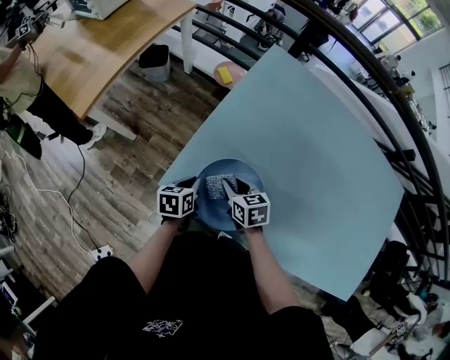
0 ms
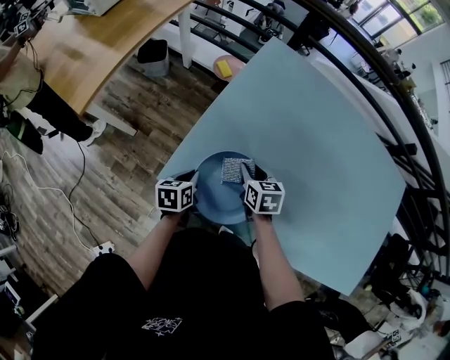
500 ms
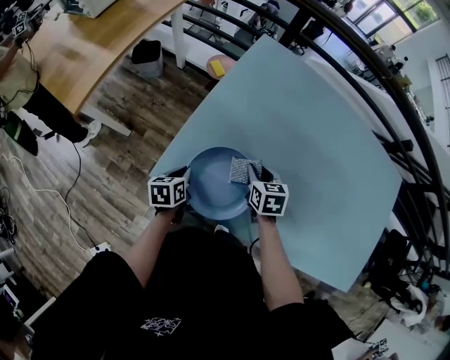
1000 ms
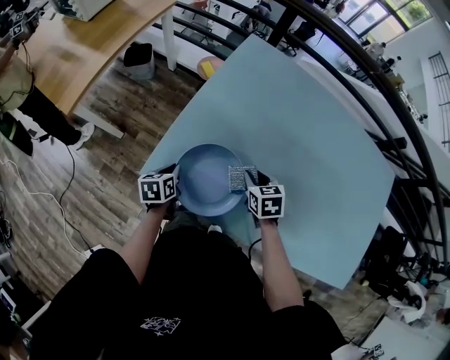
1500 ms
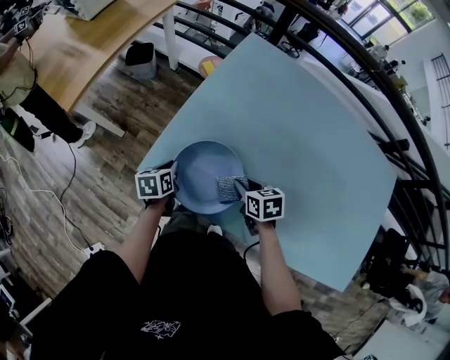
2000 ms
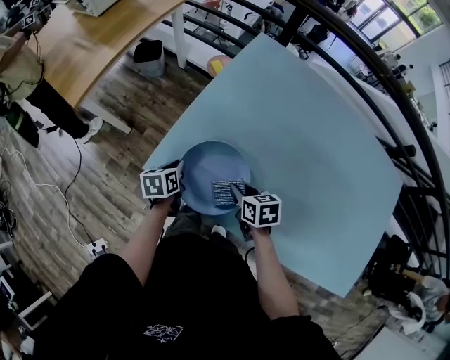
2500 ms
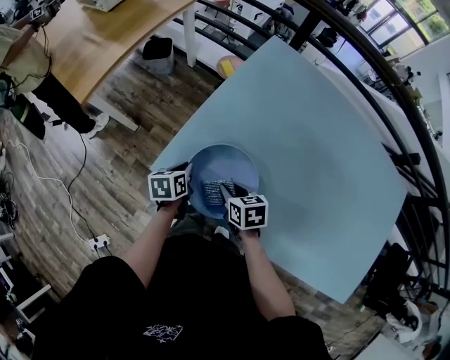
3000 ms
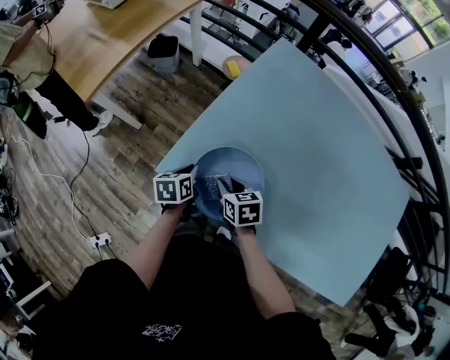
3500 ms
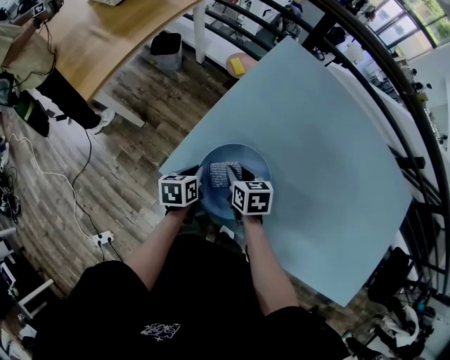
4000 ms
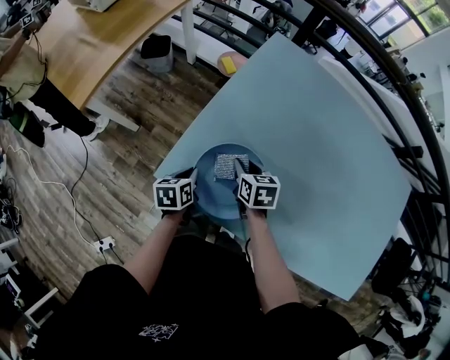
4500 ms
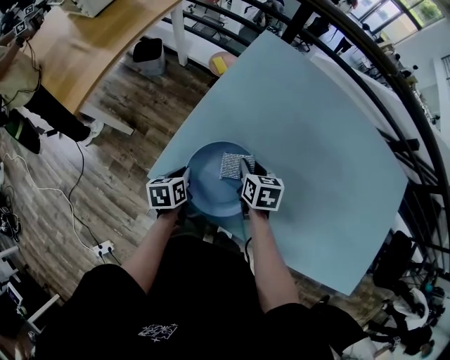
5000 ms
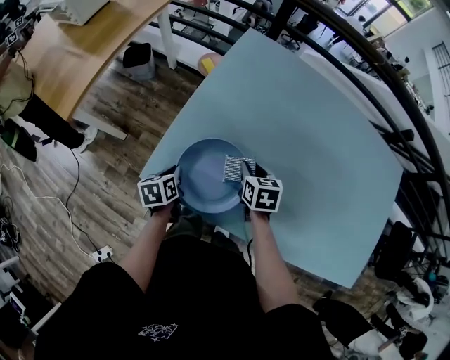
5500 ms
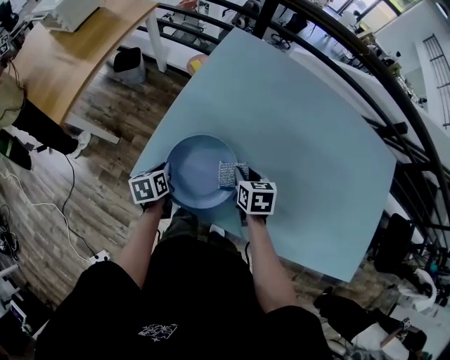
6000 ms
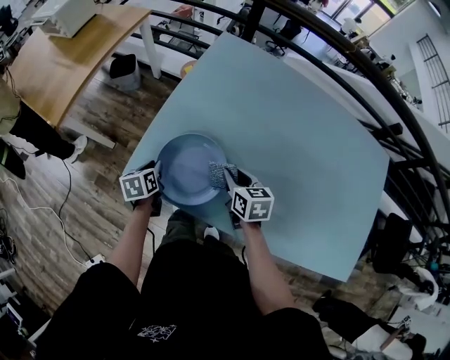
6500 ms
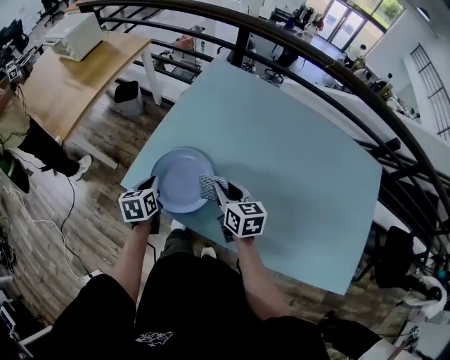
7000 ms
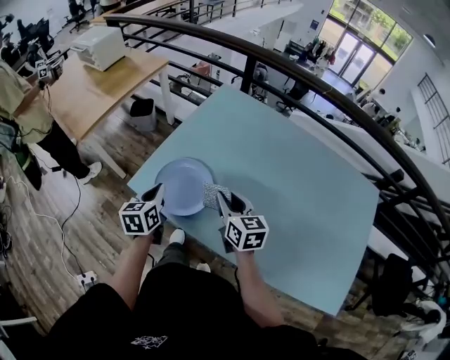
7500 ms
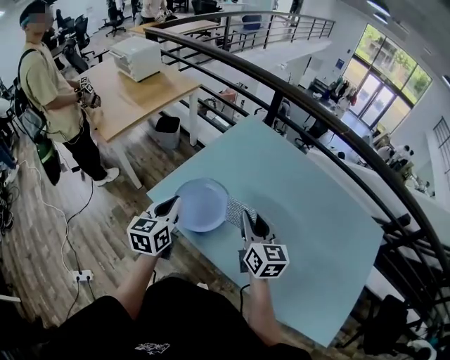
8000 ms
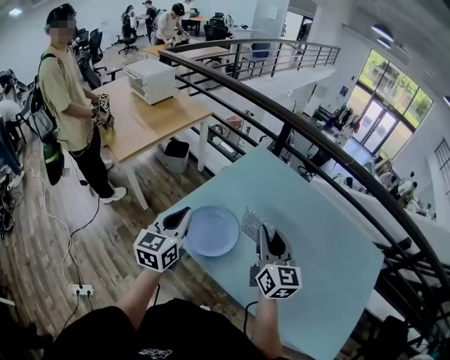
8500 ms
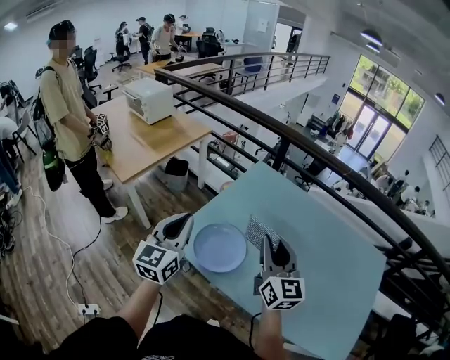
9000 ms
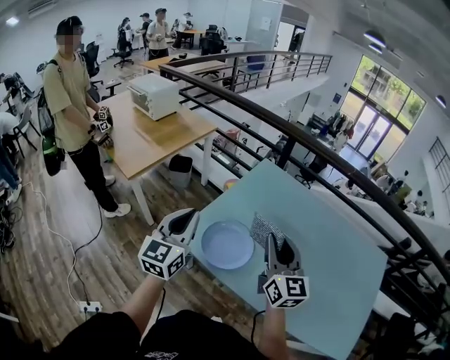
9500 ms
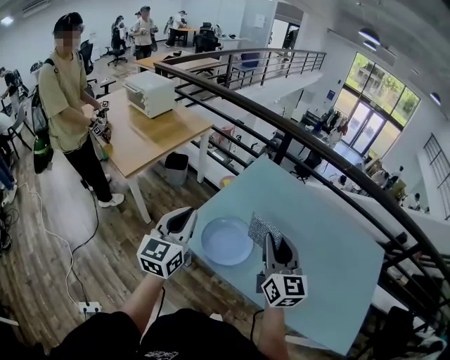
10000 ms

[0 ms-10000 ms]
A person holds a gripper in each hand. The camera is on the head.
0 ms to 2000 ms: The right gripper heads to the right and backward, covering about 15 cm.
2000 ms to 4000 ms: The right gripper is displaced to the left and forward by about 15 cm.
4000 ms to 6000 ms: The right gripper goes about 15 cm to the right.
6000 ms to 8000 ms: Both grippers travel together upward and backward, roughly 30 cm. The left gripper angles its fingers upward, by some 30 degrees. The right gripper points its fingers roughly 40 degrees further upward.
8000 ms to 10000 ms: Both grippers move upward and to the left, approximately 15 cm. The left gripper turns by roughly 20 degrees.

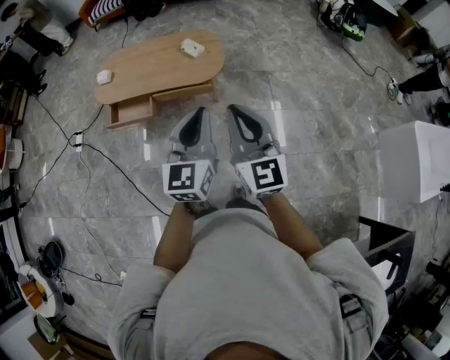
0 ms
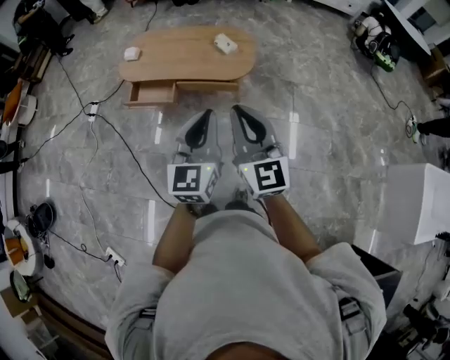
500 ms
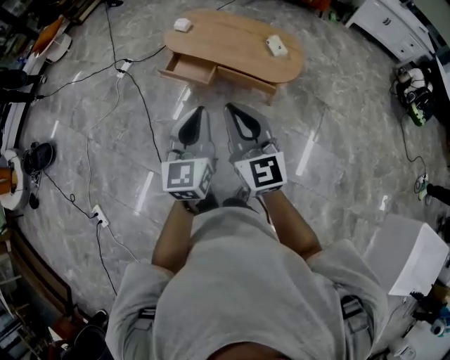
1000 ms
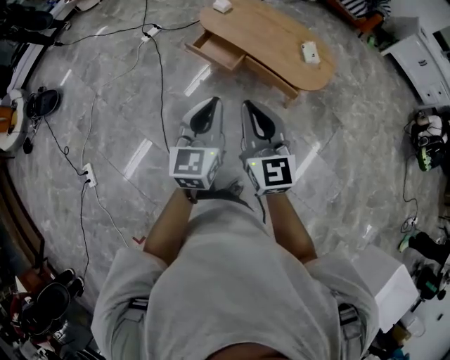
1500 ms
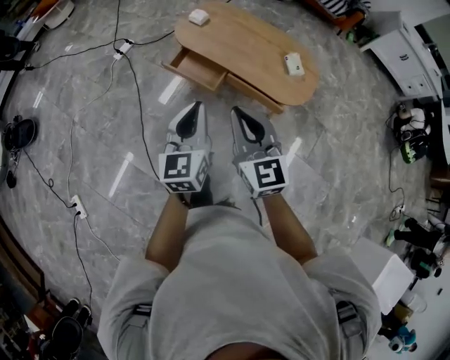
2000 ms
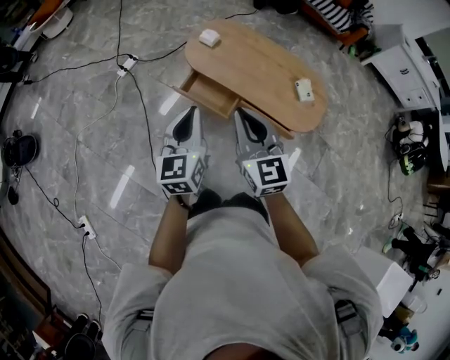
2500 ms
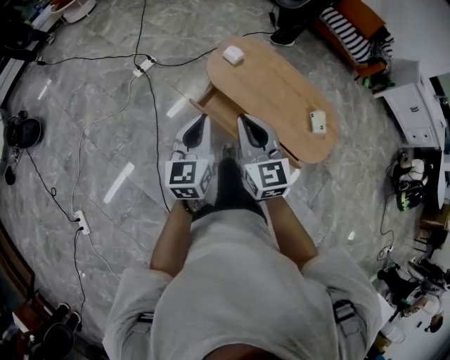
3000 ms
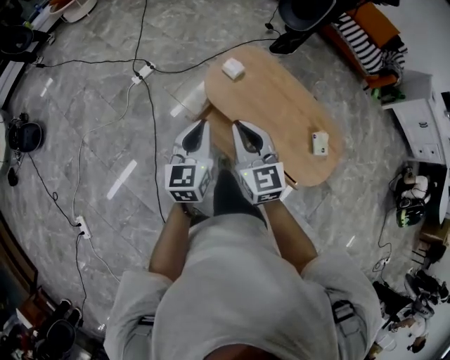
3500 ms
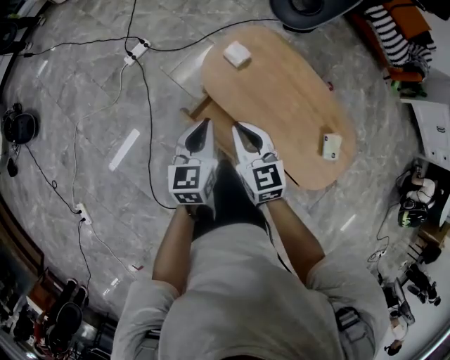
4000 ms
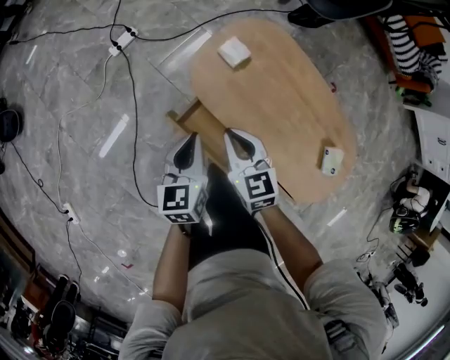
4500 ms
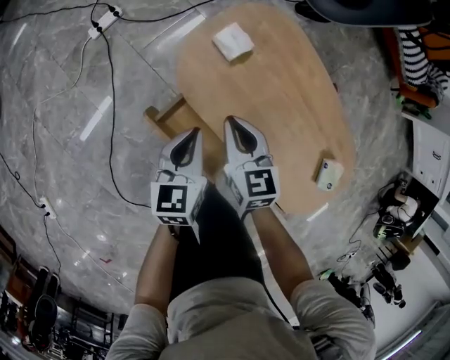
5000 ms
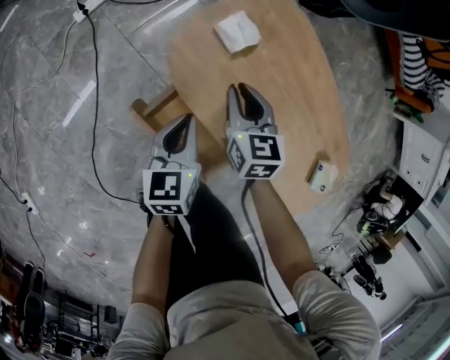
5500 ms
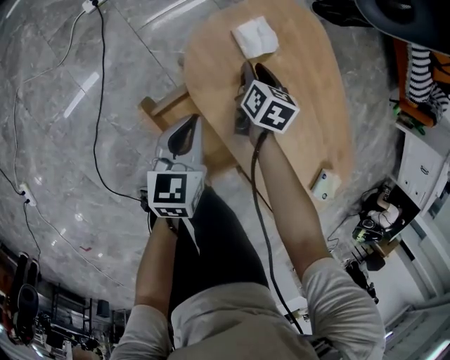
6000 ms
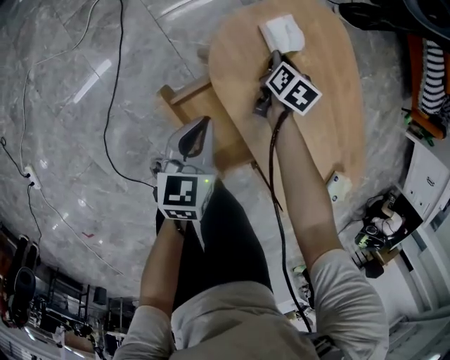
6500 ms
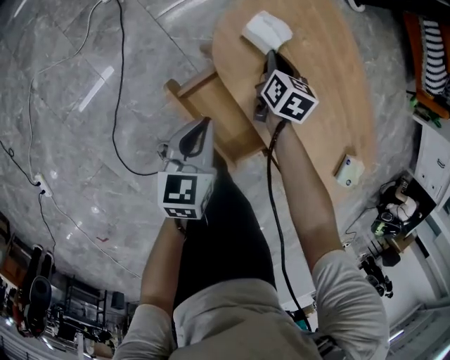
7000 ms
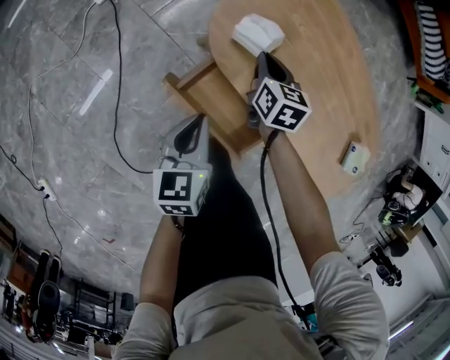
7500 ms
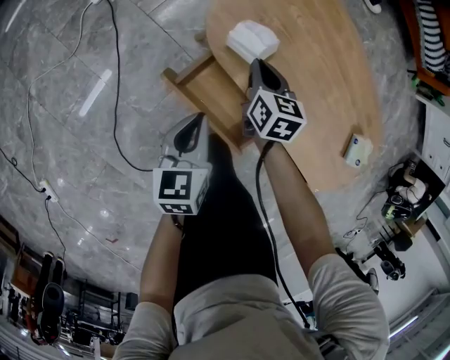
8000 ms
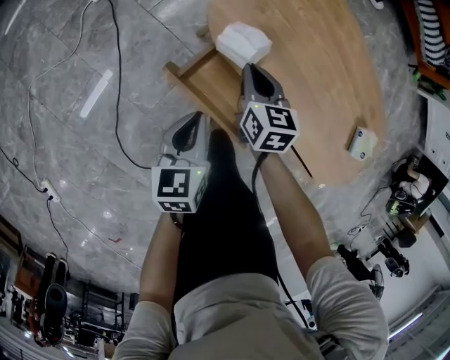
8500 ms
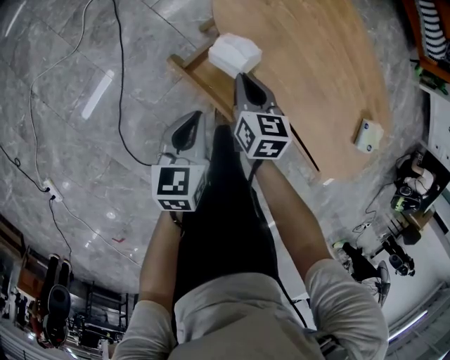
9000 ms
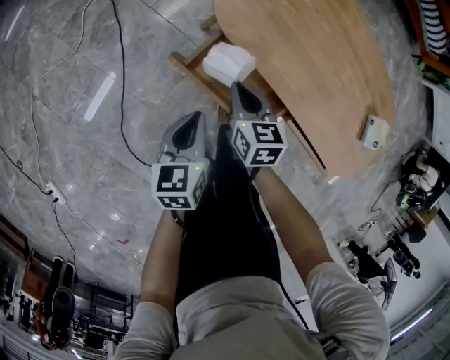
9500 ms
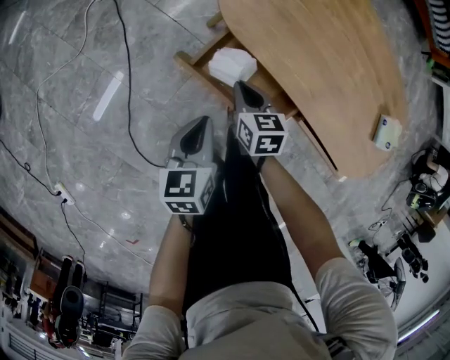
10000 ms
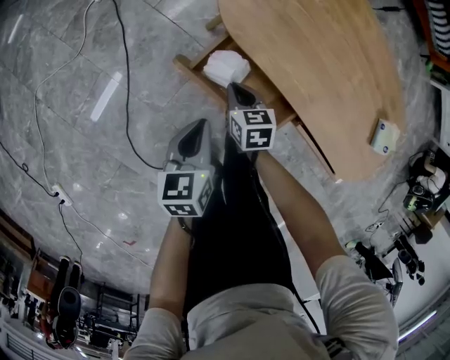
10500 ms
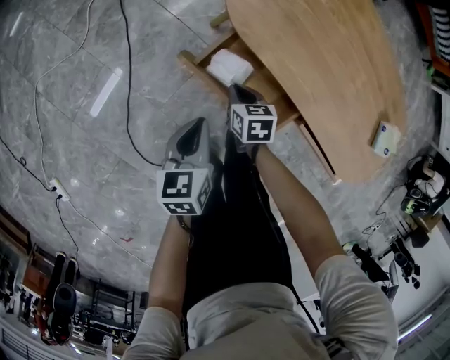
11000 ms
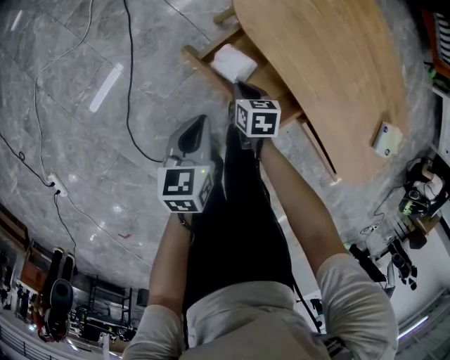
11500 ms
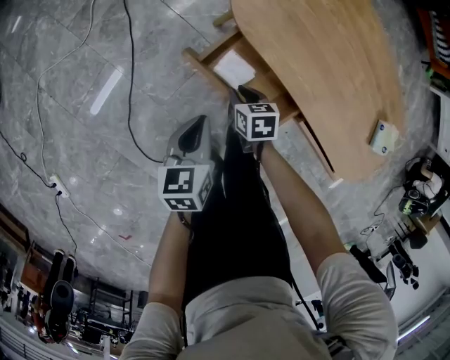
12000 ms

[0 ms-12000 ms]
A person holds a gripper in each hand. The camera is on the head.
0 ms to 2000 ms: The left gripper changes place by roughly 35 cm, and swivels some 40 degrees; the right gripper moves about 30 cm, and swivels some 40 degrees.
2000 ms to 4000 ms: The two grippers travel together, forward, some 50 cm. The right gripper changes its angle by roughly 20 degrees.
4000 ms to 6000 ms: The right gripper is displaced downward and forward by about 40 cm, rotates some 40 degrees, and opens. The left gripper moves downward, approximately 25 cm.
6000 ms to 8000 ms: The two grippers go approximately 10 cm backward. The right gripper closes up.
8000 ms to 10000 ms: The left gripper travels backward and downward by approximately 10 cm. Meanwhile the right gripper heads backward, downward and to the left, covering some 15 cm.
10000 ms to 12000 ms: The right gripper shifts about 5 cm downward, and opens.

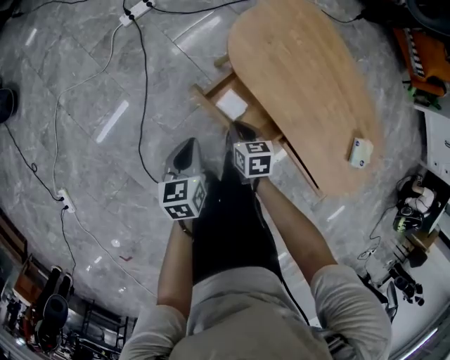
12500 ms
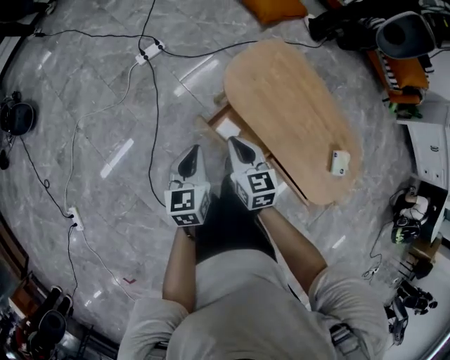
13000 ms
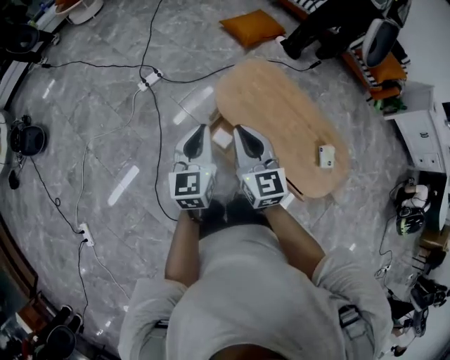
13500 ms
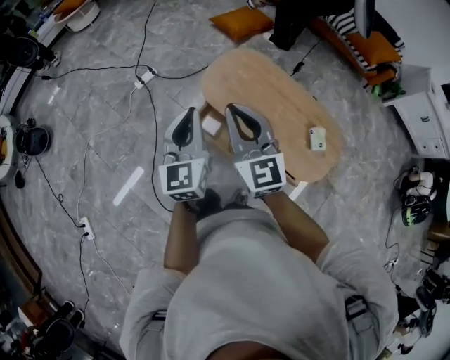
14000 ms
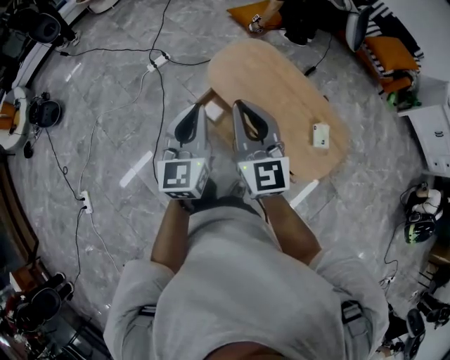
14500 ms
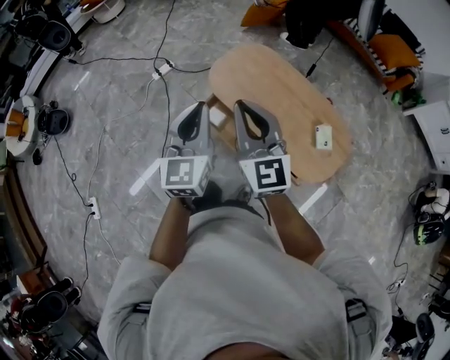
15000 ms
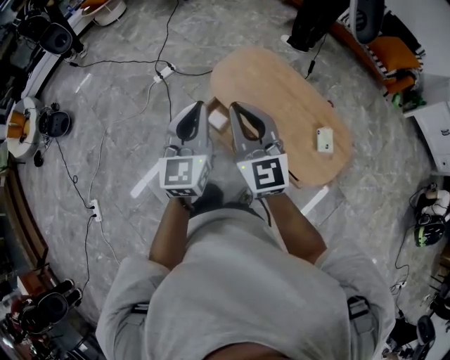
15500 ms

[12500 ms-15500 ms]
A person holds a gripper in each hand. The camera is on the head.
12500 ms to 14000 ms: Both grippers travel together upward, roughly 50 cm. The left gripper angles its fingers upward, by some 40 degrees, while the right gripper points its fingers roughly 50 degrees further upward.
14000 ms to 15500 ms: Both grippers move to the right and backward, some 10 cm.

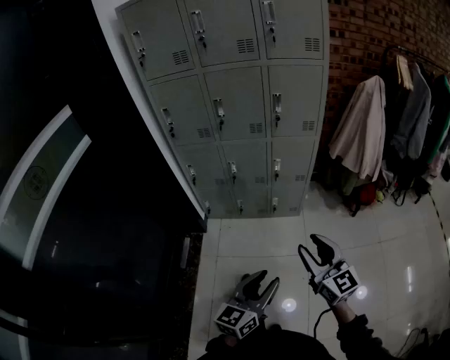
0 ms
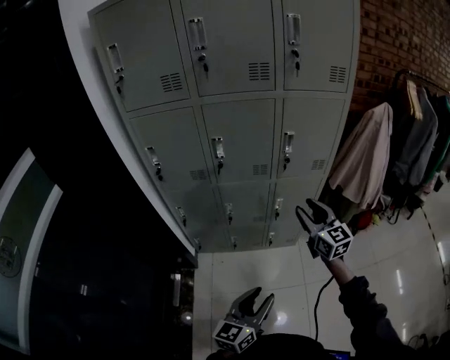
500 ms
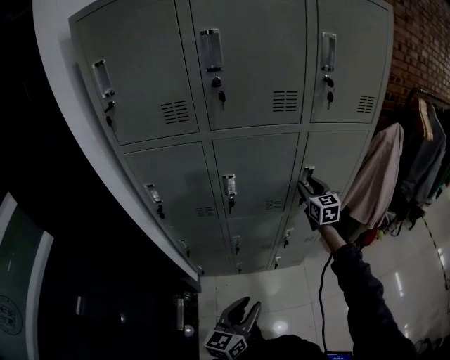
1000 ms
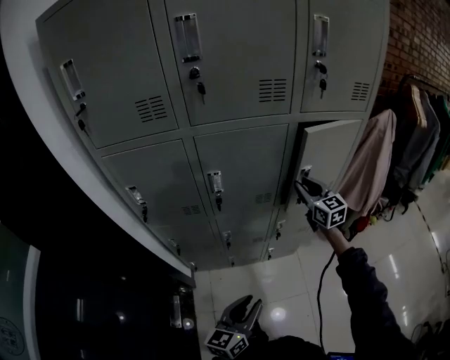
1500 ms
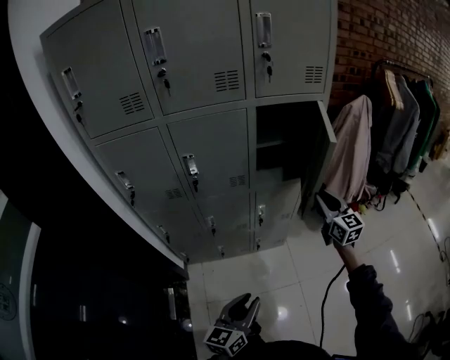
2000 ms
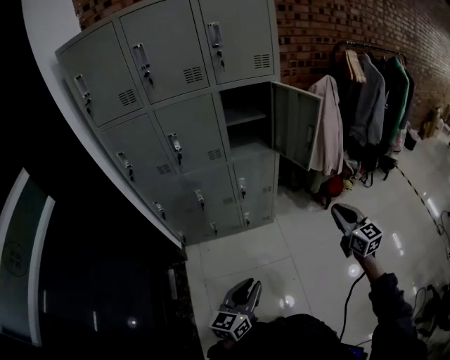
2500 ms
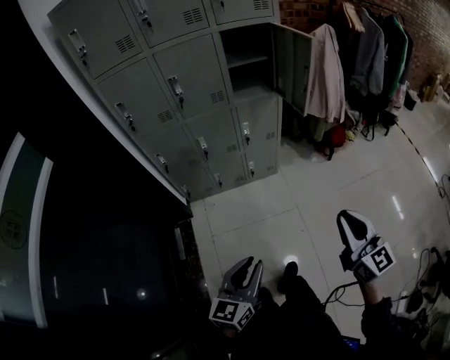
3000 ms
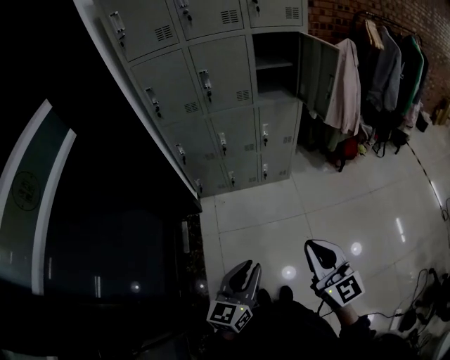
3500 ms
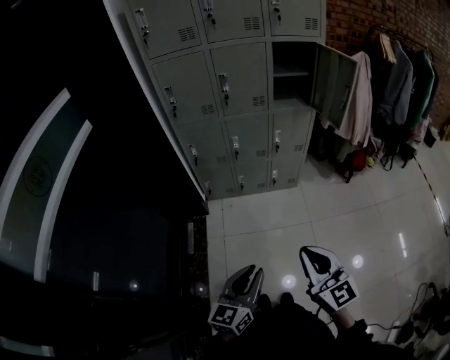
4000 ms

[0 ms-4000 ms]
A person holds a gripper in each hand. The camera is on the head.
0 ms to 2000 ms: The right gripper shifts roughly 40 cm forward, and turns by roughly 20 degrees, while the left gripper moves forward and to the left, approximately 30 cm.
2000 ms to 4000 ms: The right gripper is displaced backward by roughly 60 cm. Meanwhile the left gripper moves backward, some 35 cm.
